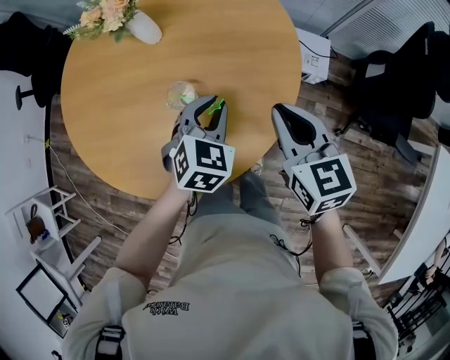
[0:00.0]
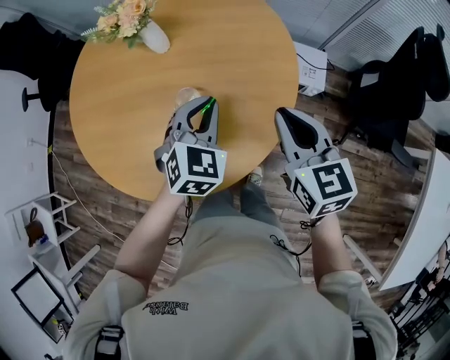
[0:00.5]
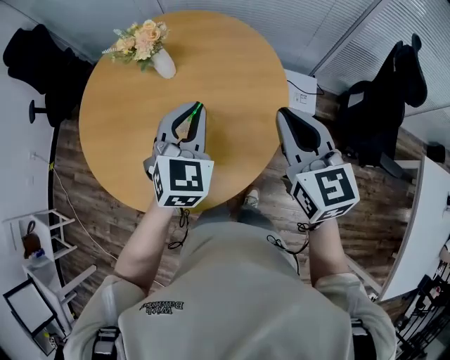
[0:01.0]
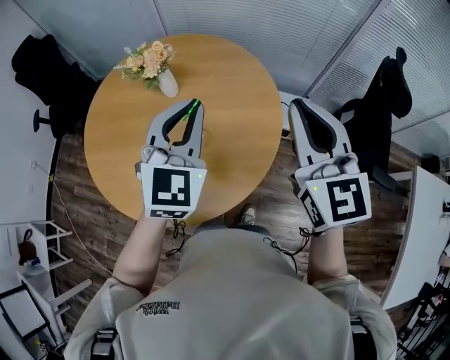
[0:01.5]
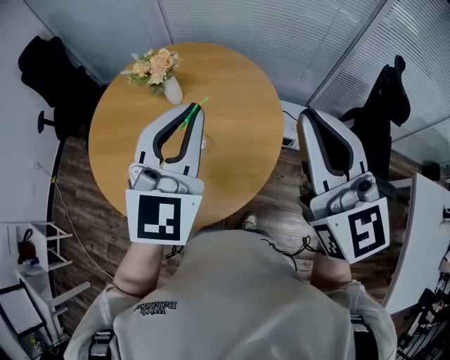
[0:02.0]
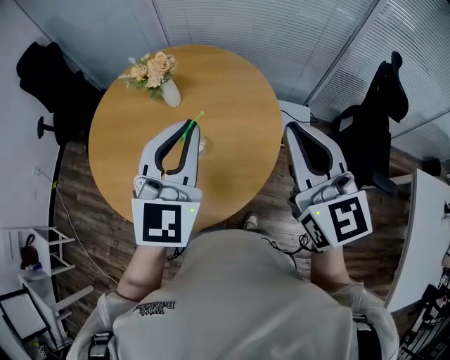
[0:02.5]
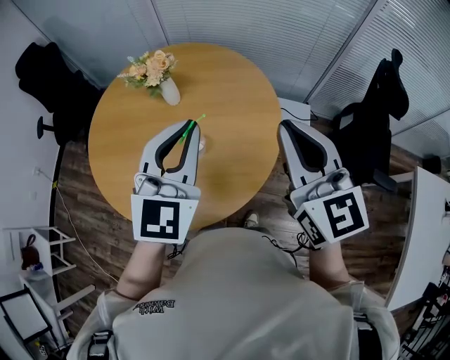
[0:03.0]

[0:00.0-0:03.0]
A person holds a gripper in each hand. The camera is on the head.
0:00.0 to 0:01.5: The two grippers go roughly 25 cm upward. The right gripper rotates approximately 30 degrees. Meanwhile the left gripper tilts its fingers roughly 30 degrees upward.

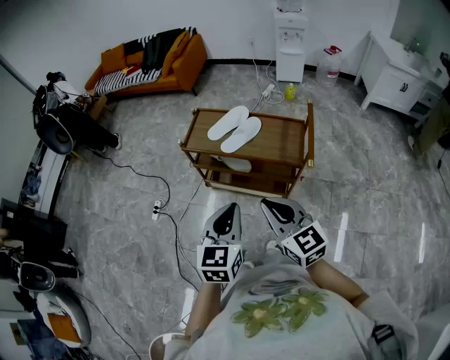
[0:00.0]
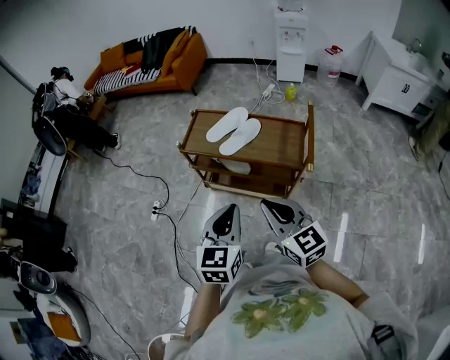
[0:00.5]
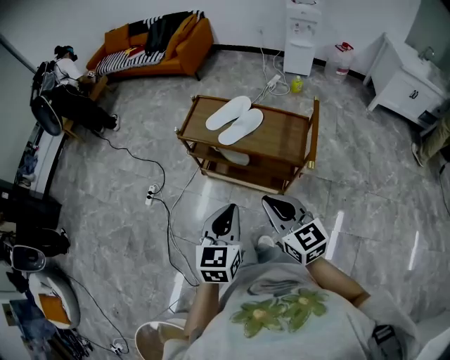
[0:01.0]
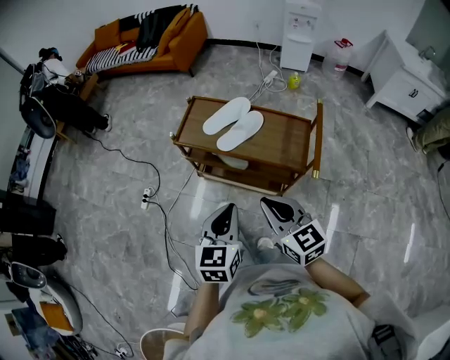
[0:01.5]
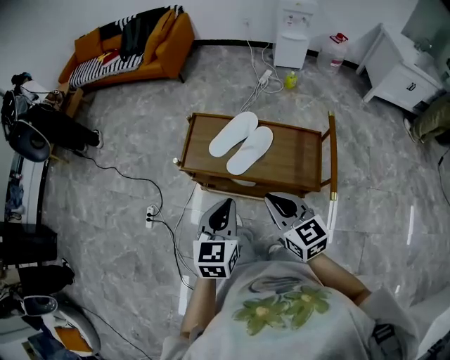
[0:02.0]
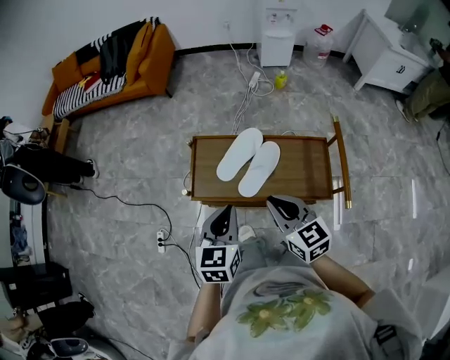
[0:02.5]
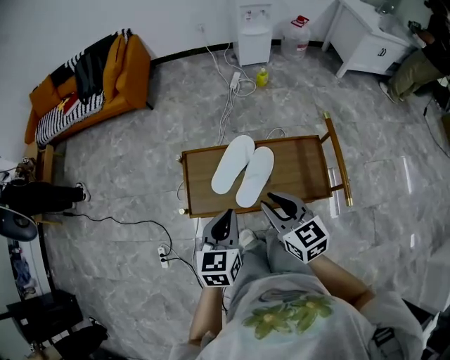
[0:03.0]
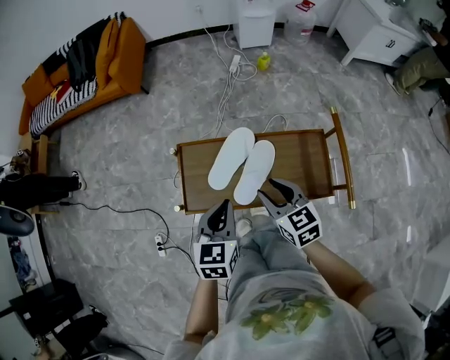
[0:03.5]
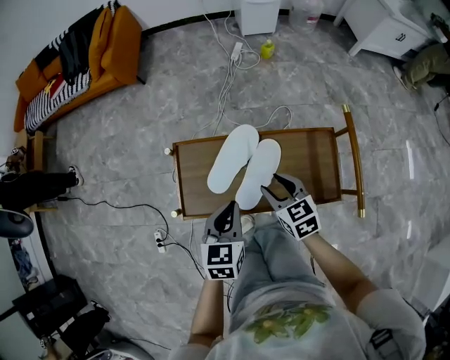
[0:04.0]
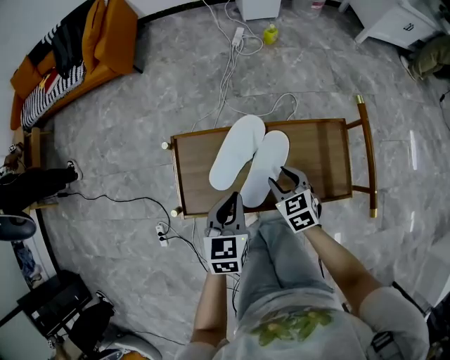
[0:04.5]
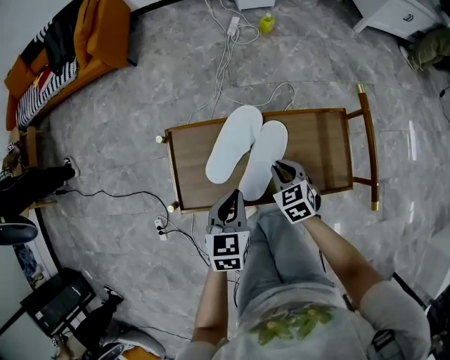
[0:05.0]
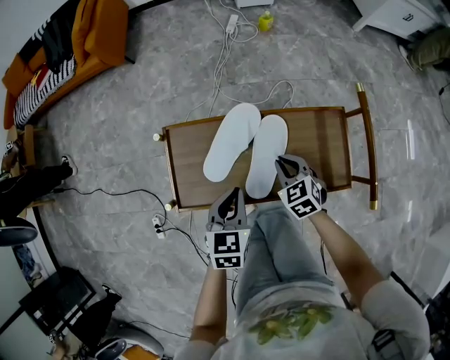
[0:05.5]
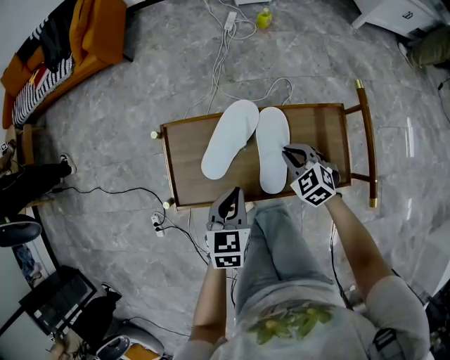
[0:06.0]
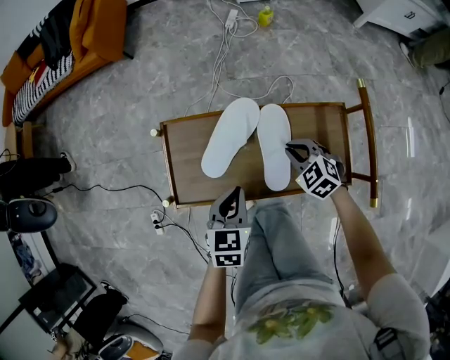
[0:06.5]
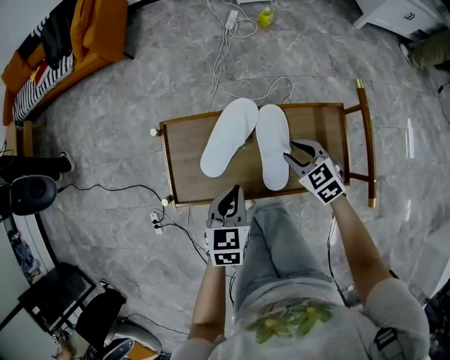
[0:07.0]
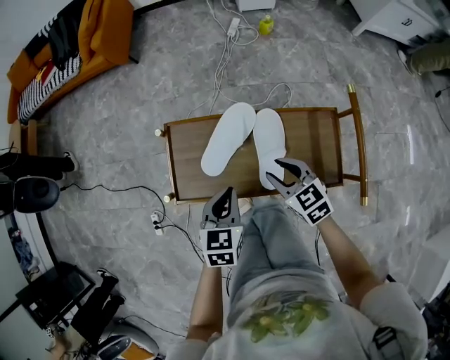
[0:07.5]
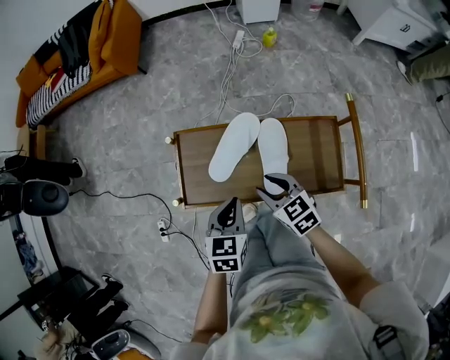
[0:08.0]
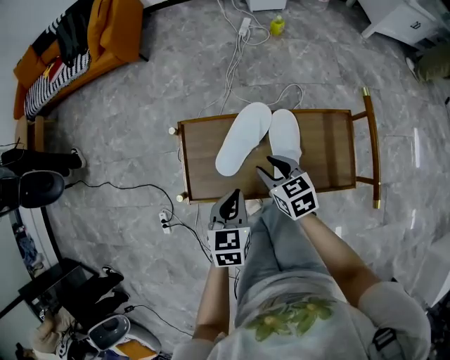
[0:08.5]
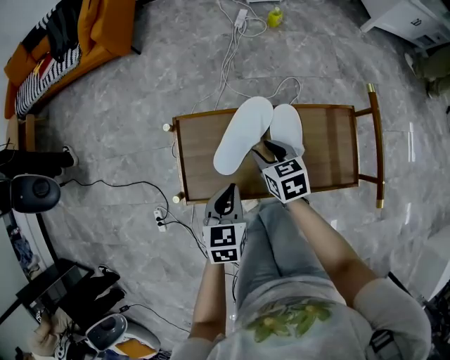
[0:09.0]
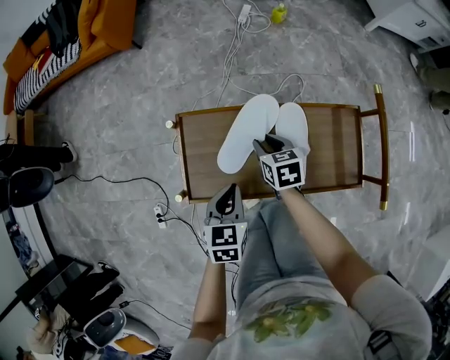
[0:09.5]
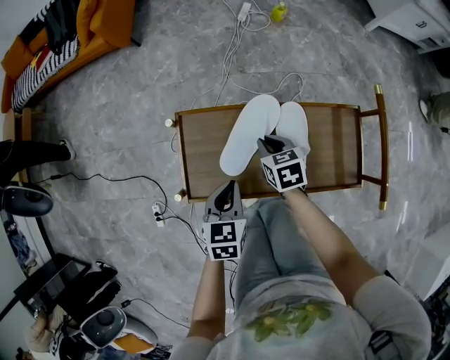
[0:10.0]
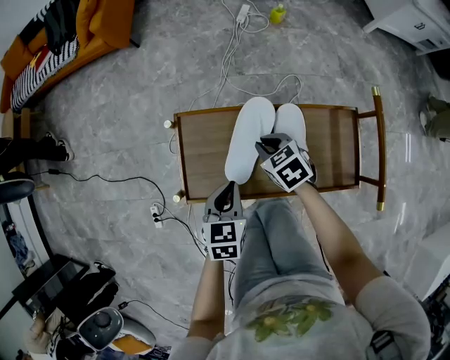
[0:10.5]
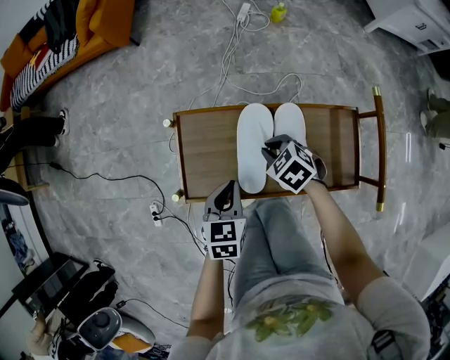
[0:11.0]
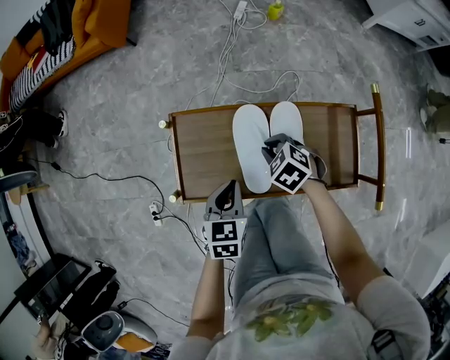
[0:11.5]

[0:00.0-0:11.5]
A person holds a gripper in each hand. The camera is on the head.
0:00.0 to 0:02.0: The two grippers go roughly 20 cm forward.
0:02.0 to 0:04.0: Both grippers move forward and downward, about 25 cm. The right gripper swivels some 20 degrees, and opens up.
0:04.0 to 0:06.0: The left gripper heads downward, covering approximately 5 cm, while the right gripper heads downward and to the right, covering some 10 cm, swivels approximately 30 degrees, and closes up.
0:06.0 to 0:07.5: The right gripper moves upward, roughly 10 cm, swivels about 20 degrees, and opens up.
0:07.5 to 0:09.5: The left gripper travels downward by roughly 5 cm. The right gripper moves downward, forward and to the left, approximately 15 cm, and changes its angle by roughly 30 degrees.
0:09.5 to 0:11.5: The right gripper rotates around the line of its fingers by approximately 40 degrees, counterclockwise from behind, and closes.

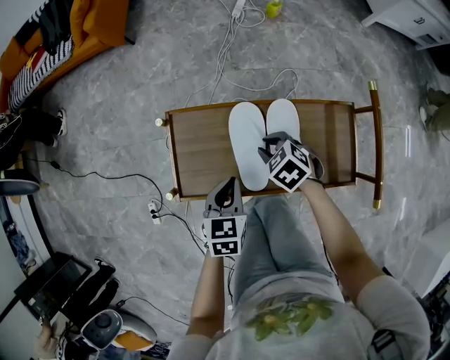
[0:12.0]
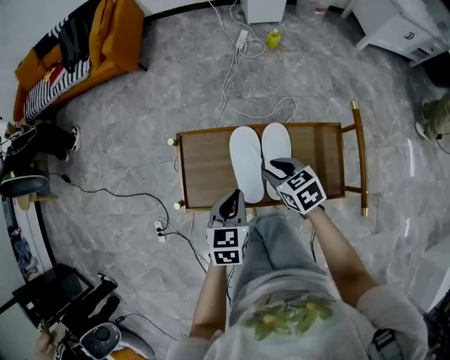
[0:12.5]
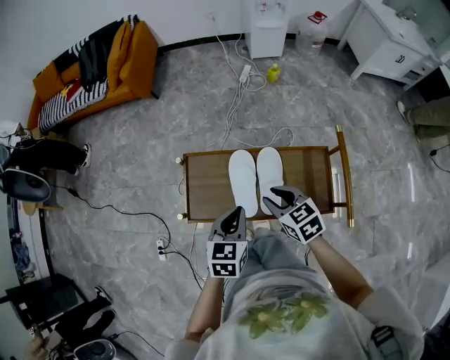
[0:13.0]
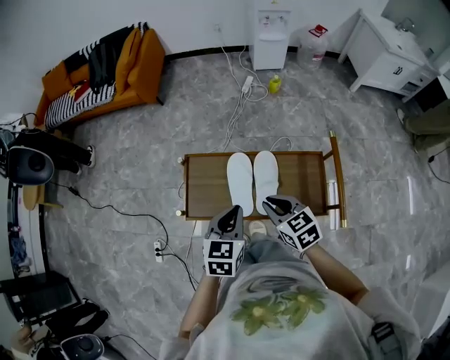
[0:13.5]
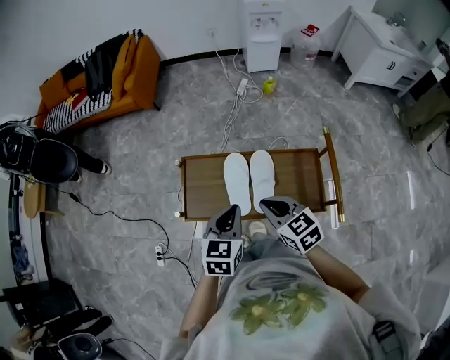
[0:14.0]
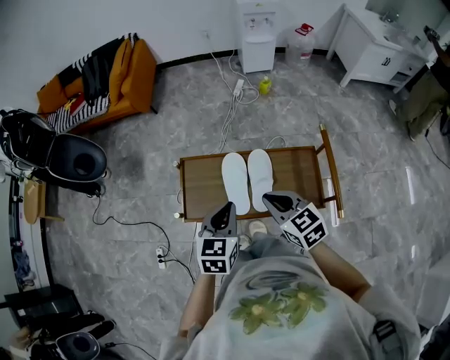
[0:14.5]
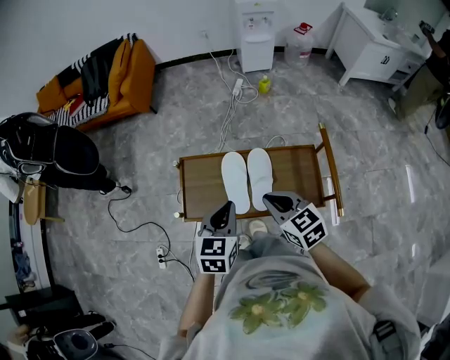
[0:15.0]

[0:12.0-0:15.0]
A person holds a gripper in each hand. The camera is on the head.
0:12.0 to 0:13.5: The right gripper goes some 20 cm upward and backward, and rotates about 30 degrees. Meanwhile the left gripper goes approximately 15 cm upward.
0:13.5 to 0:15.0: The grippers stay close to where they were, moving slightly.

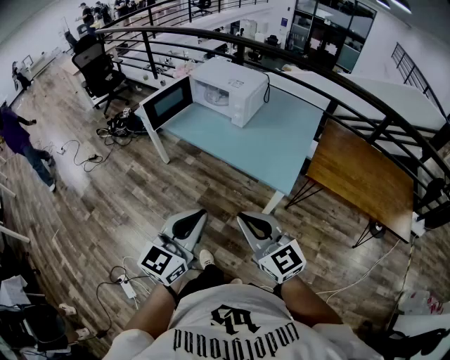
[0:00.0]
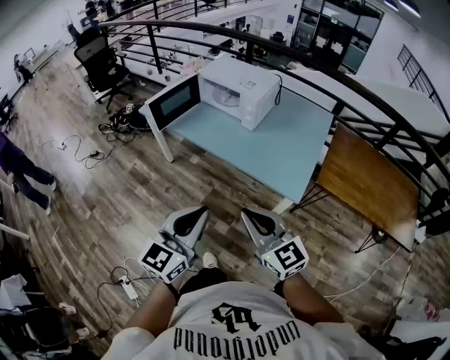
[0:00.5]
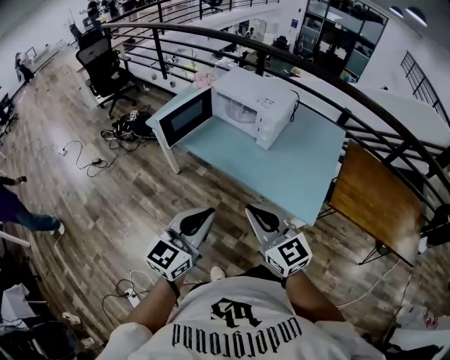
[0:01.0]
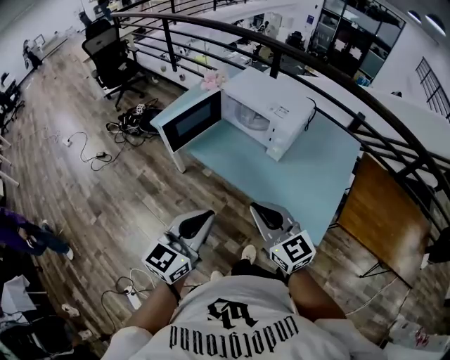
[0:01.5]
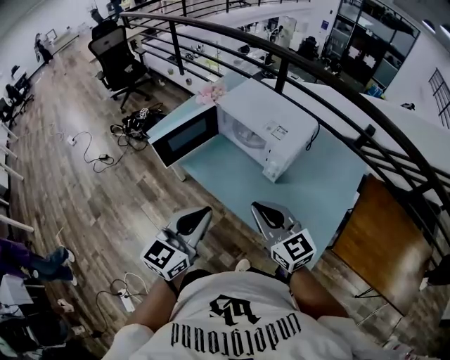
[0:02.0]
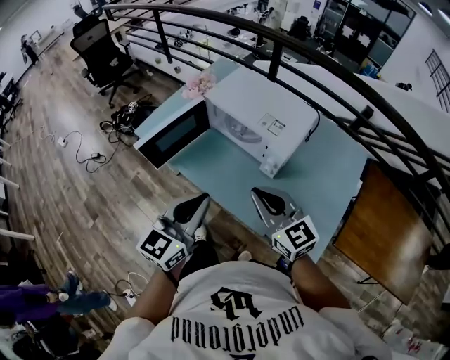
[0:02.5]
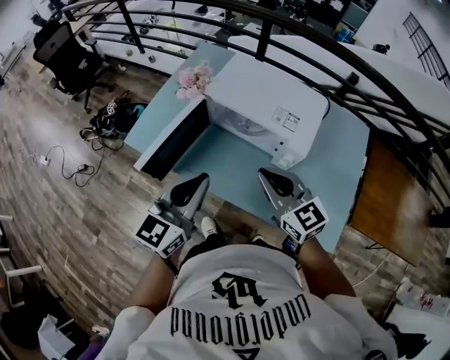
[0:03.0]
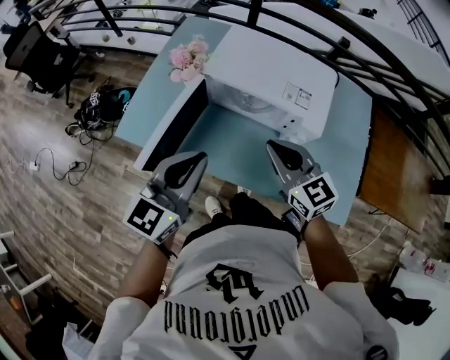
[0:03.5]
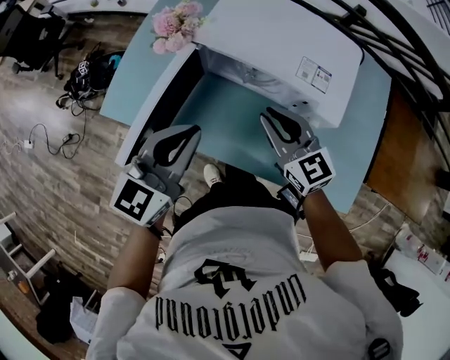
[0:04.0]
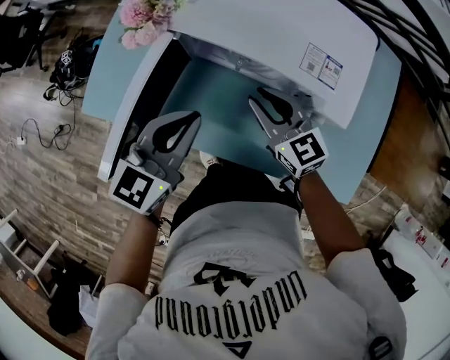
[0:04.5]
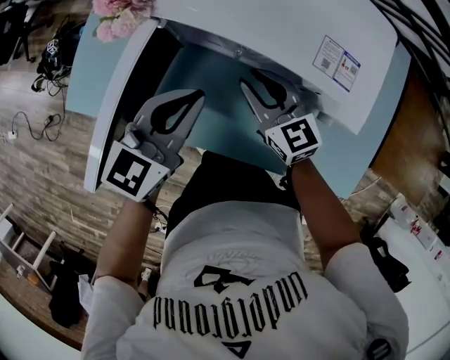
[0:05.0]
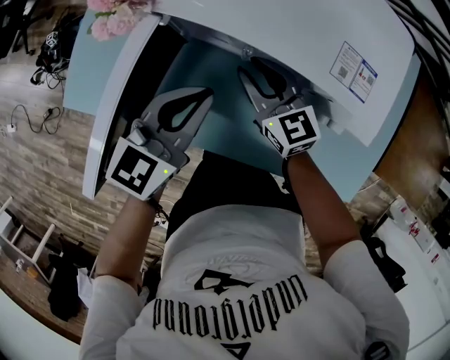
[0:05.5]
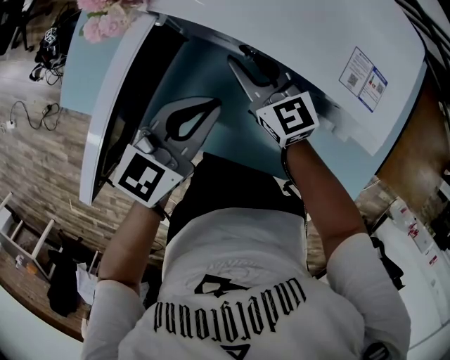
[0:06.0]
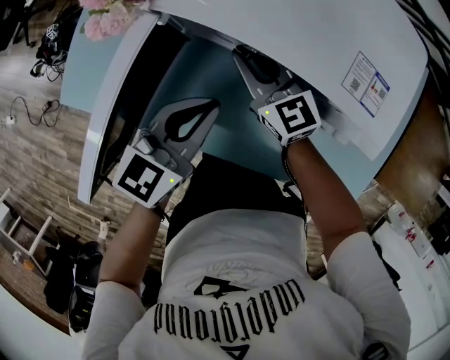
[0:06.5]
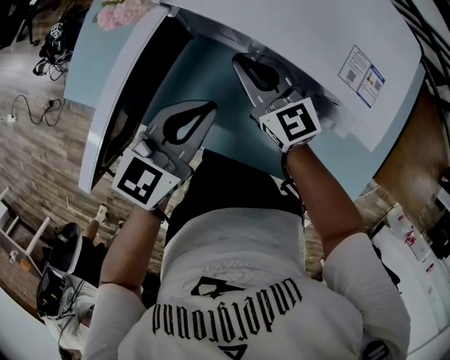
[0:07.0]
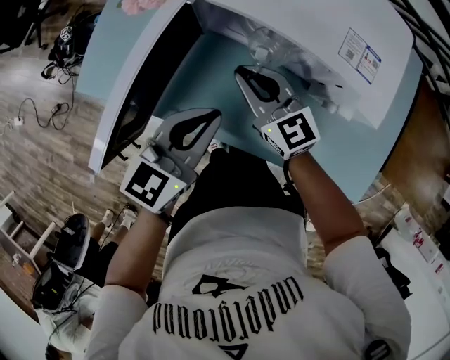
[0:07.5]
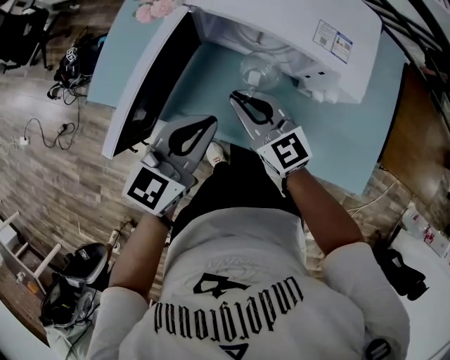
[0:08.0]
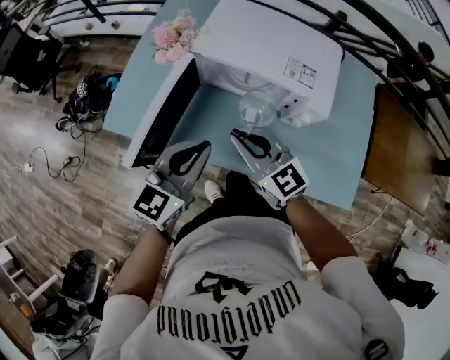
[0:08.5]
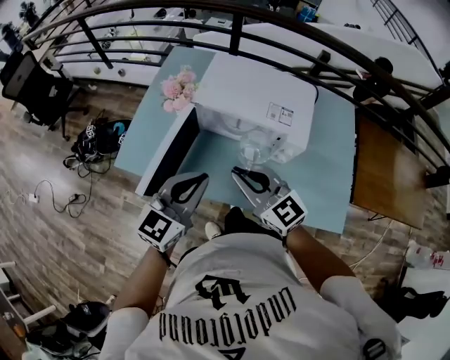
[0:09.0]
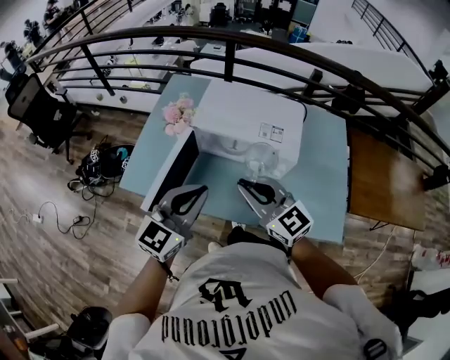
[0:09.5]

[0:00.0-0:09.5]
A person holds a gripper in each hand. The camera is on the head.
0:00.0 to 0:02.0: The grippers both shift forward by some 40 cm.
0:02.0 to 0:04.0: The left gripper heads forward and to the left, covering some 30 cm, and turns by roughly 20 degrees; the right gripper goes roughly 30 cm forward and downward, and rotates approximately 20 degrees.
0:04.0 to 0:05.5: Both grippers move downward and forward, approximately 20 cm.
0:05.5 to 0:07.5: The right gripper is displaced backward by roughly 5 cm; the left gripper travels backward by approximately 10 cm.
0:07.5 to 0:09.5: Both grippers move upward and backward, roughly 30 cm. The left gripper changes its angle by approximately 30 degrees.
